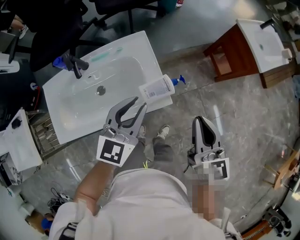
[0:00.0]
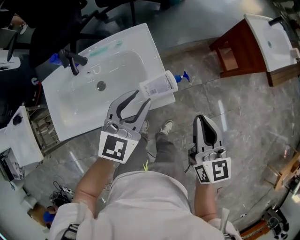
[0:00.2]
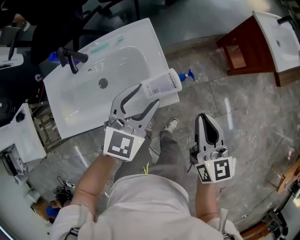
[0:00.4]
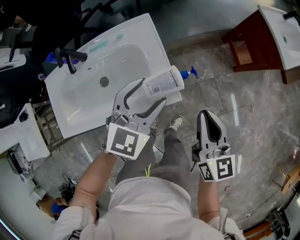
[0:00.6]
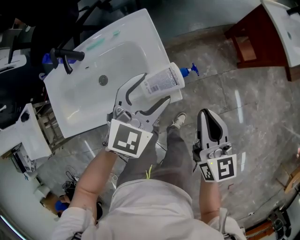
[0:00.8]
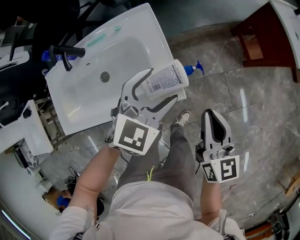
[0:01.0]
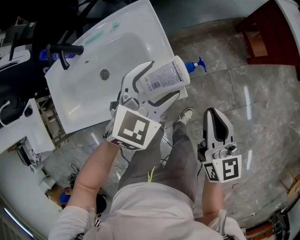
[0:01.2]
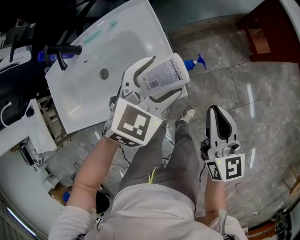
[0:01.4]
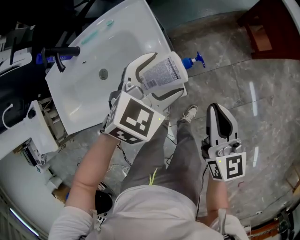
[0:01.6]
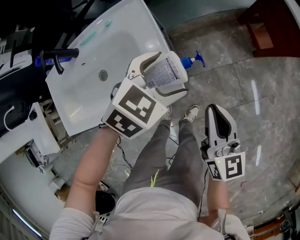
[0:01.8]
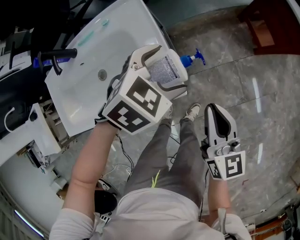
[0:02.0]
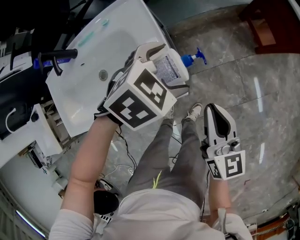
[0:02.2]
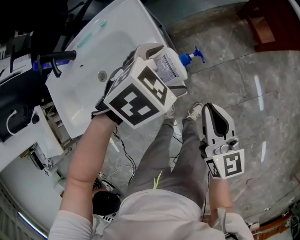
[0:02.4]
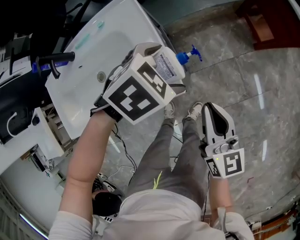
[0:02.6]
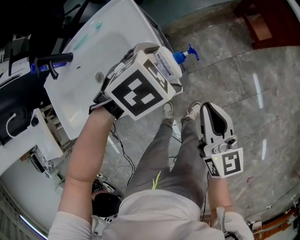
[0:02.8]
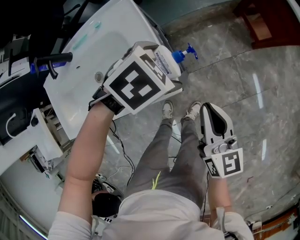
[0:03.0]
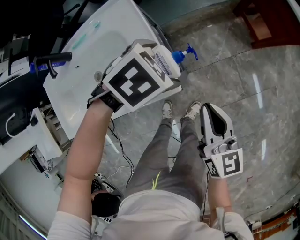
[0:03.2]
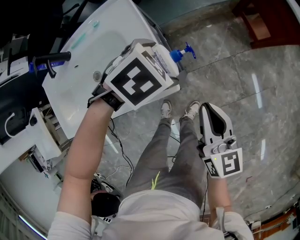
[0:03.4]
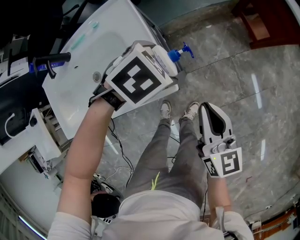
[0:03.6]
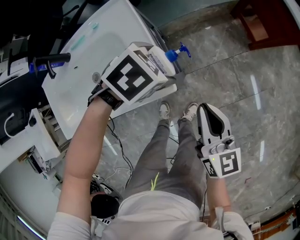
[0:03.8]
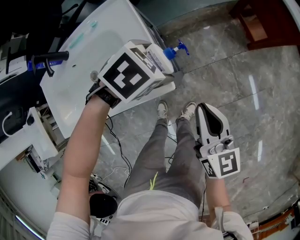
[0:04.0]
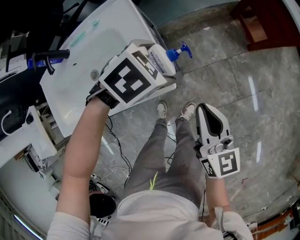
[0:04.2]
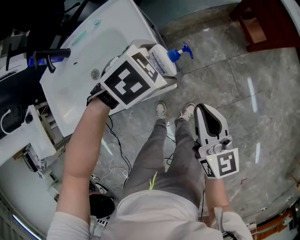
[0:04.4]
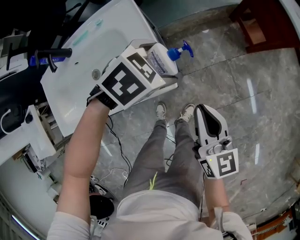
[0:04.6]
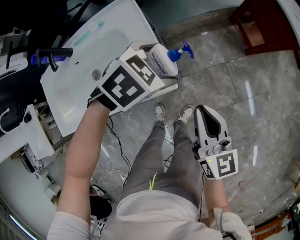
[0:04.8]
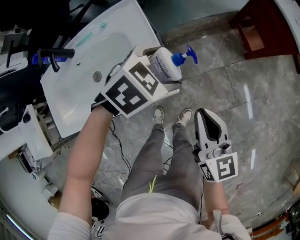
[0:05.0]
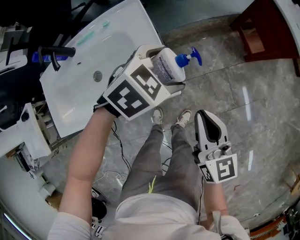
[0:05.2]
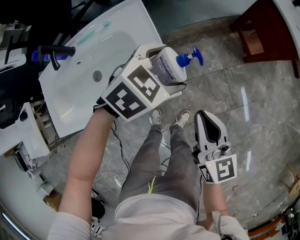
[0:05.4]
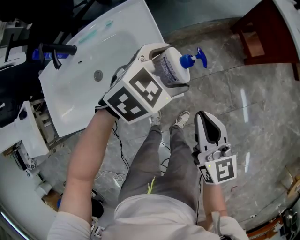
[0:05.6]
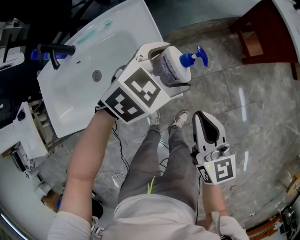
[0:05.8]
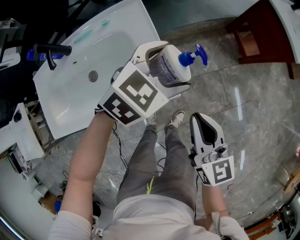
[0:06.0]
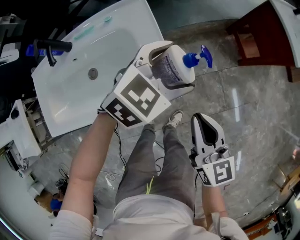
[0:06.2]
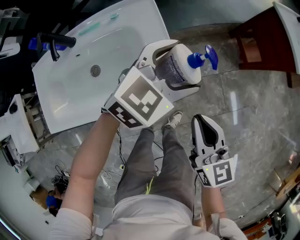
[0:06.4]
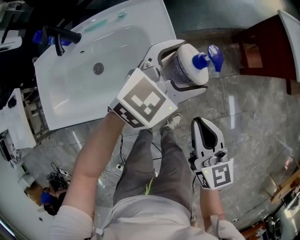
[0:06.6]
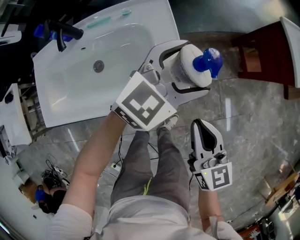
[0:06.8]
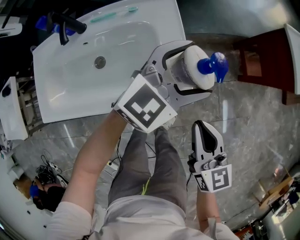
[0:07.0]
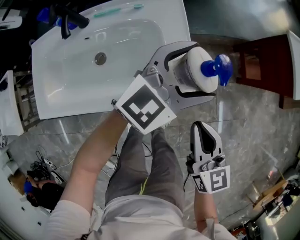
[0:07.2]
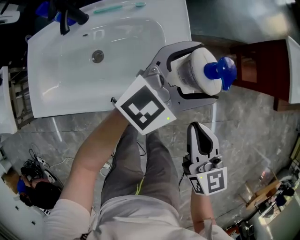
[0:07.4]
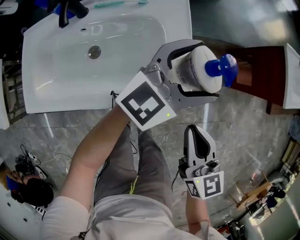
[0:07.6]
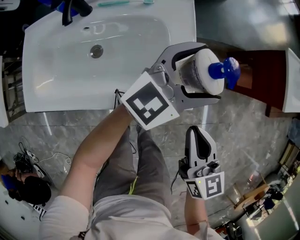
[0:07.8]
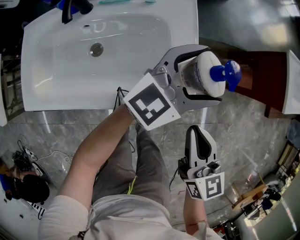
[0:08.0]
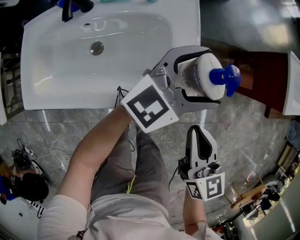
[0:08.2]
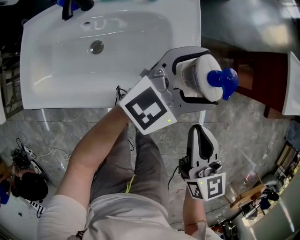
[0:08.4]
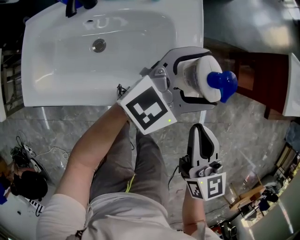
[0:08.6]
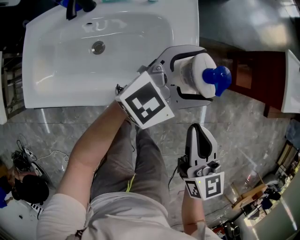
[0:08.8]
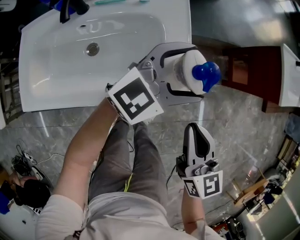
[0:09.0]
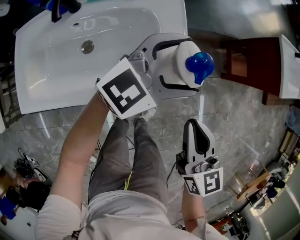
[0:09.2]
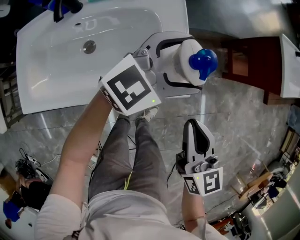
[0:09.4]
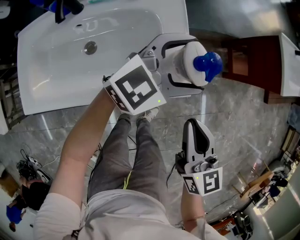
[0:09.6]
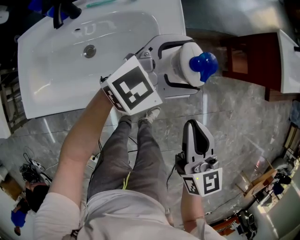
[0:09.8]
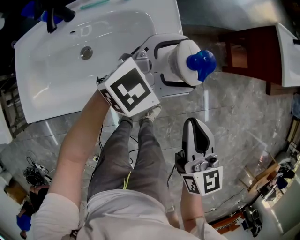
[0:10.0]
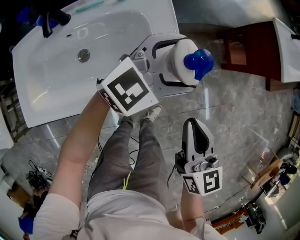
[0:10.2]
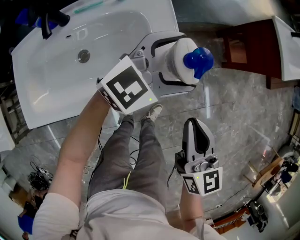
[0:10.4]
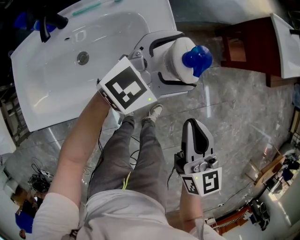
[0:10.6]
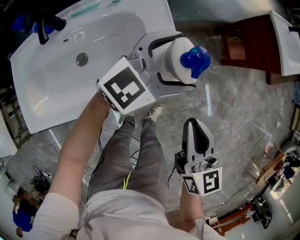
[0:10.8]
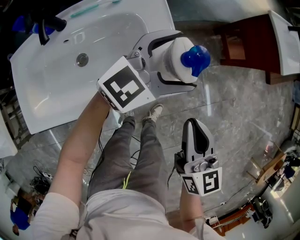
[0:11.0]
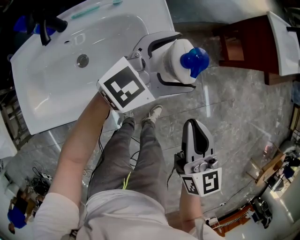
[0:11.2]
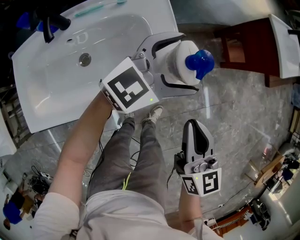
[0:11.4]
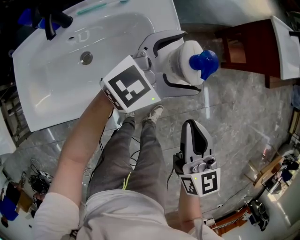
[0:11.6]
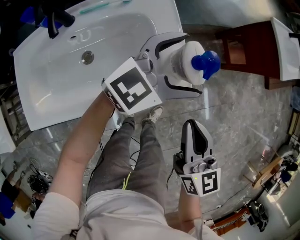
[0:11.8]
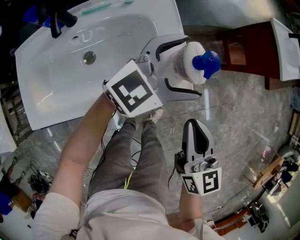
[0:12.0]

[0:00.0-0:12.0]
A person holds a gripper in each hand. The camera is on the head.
0:00.0 to 0:01.6: The left gripper heads downward, to the right and forward, covering some 25 cm, angles its fingers downward, by approximately 30 degrees, and opens, while the right gripper shifts roughly 20 cm downward.
0:01.6 to 0:03.0: The left gripper shifts some 5 cm downward, and swivels some 30 degrees.
0:03.0 to 0:04.4: There are only small adjustments of the grippers.
0:04.4 to 0:06.0: The left gripper is displaced upward by some 5 cm, and rotates some 30 degrees.
0:06.0 to 0:07.6: The left gripper travels to the left and upward by approximately 10 cm, and points its fingers approximately 40 degrees further upward, while the right gripper heads to the left, covering some 5 cm.
0:07.6 to 0:09.0: The grippers move only a little.
0:09.0 to 0:12.0: There are only small adjustments of the grippers.

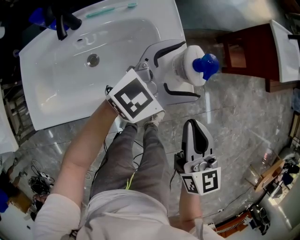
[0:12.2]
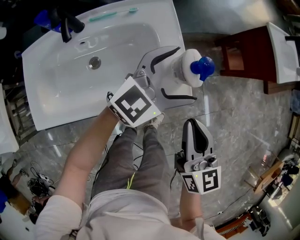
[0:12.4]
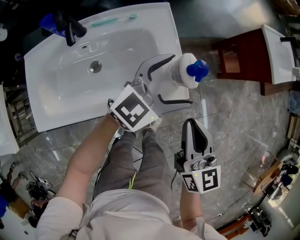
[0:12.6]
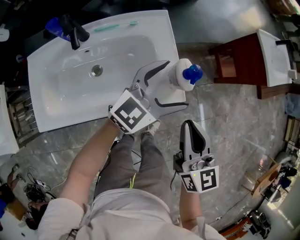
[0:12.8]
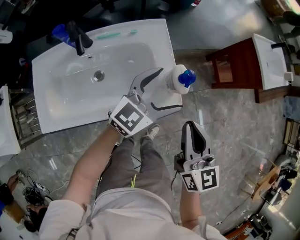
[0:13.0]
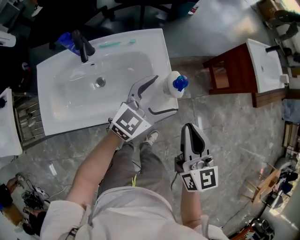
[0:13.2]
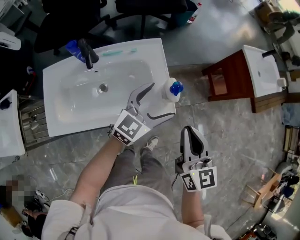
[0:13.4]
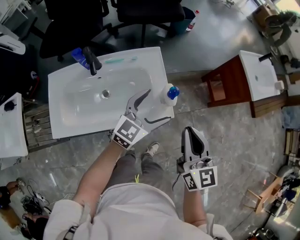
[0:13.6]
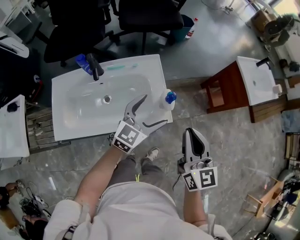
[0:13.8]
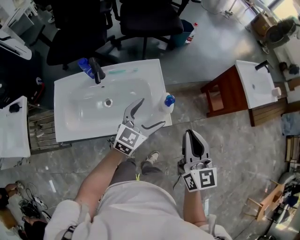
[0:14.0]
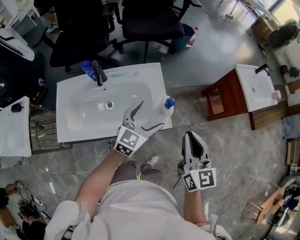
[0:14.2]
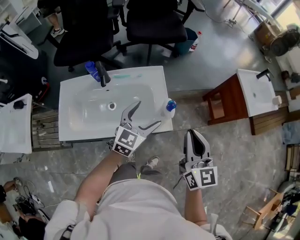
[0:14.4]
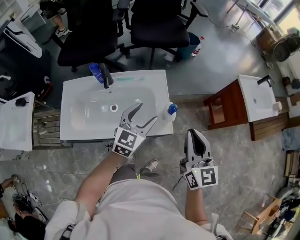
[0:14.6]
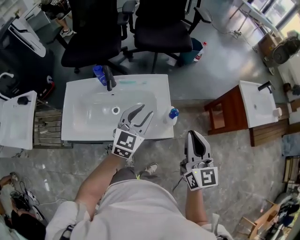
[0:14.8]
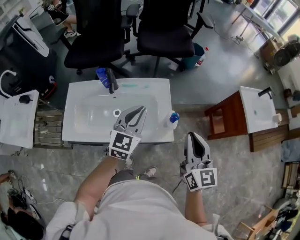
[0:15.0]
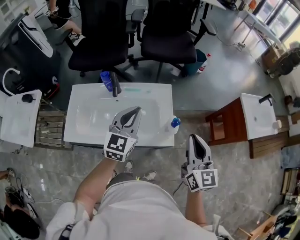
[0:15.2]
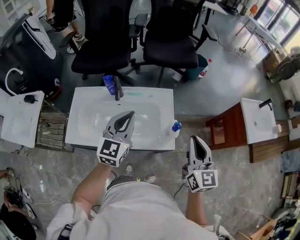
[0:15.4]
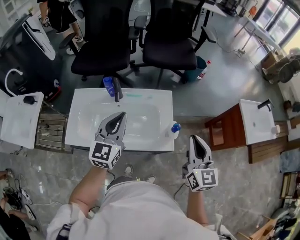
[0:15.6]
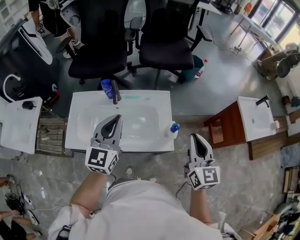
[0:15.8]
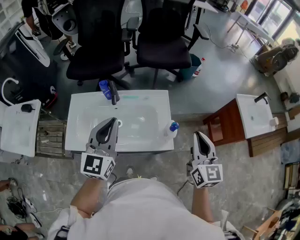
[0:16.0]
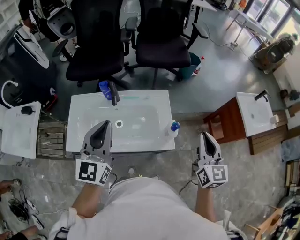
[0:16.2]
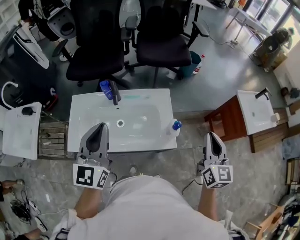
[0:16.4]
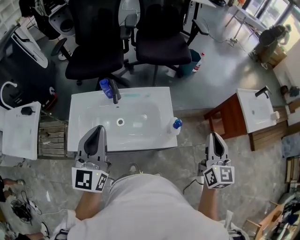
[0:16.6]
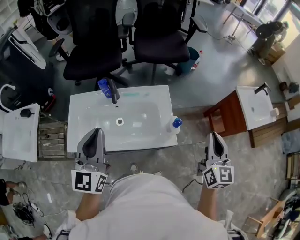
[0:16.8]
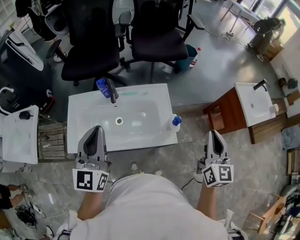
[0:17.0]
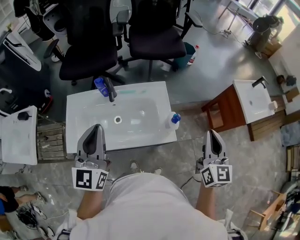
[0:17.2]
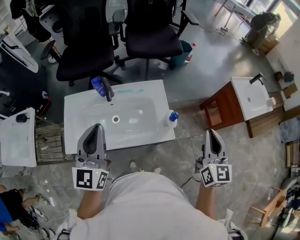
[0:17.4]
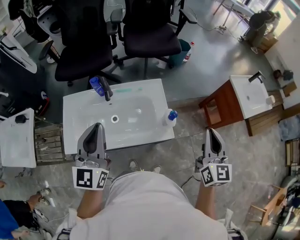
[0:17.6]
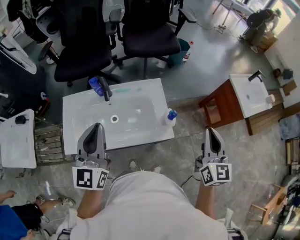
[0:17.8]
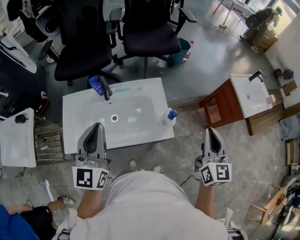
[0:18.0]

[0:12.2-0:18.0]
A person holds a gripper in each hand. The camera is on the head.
0:12.2 to 0:13.6: The right gripper shifts approximately 15 cm upward; the left gripper heads upward and backward, covering some 10 cm, and rotates approximately 20 degrees.
0:13.6 to 0:15.0: The right gripper shifts some 5 cm upward. Meanwhile the left gripper moves upward and to the left, about 15 cm, rotates approximately 30 degrees, and closes.
0:15.0 to 0:16.6: The right gripper goes some 5 cm to the right. Meanwhile the left gripper heads to the left, upward and backward, covering approximately 20 cm, and rotates about 20 degrees.
0:16.6 to 0:18.0: There are only small adjustments of the grippers.

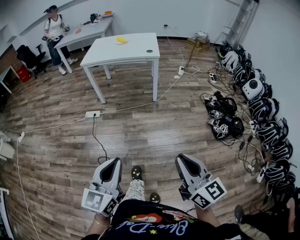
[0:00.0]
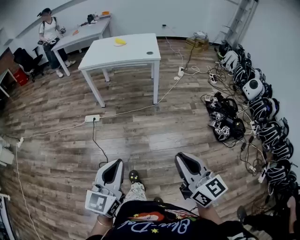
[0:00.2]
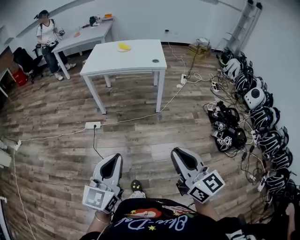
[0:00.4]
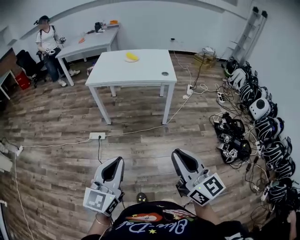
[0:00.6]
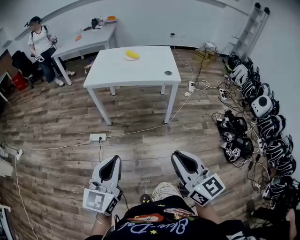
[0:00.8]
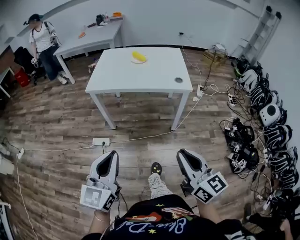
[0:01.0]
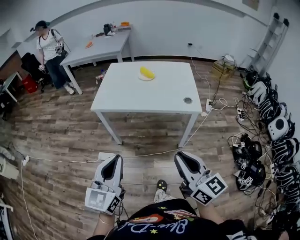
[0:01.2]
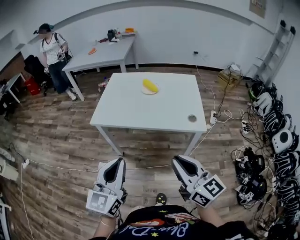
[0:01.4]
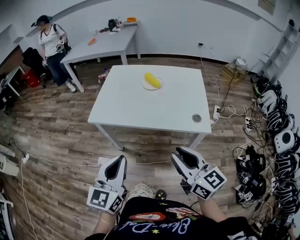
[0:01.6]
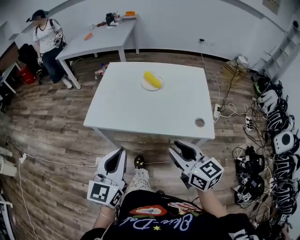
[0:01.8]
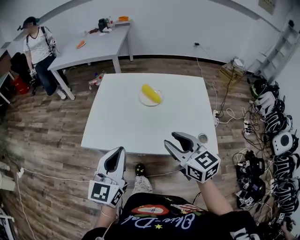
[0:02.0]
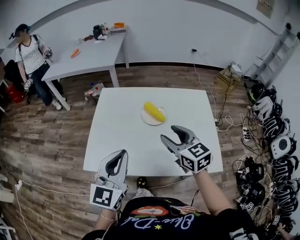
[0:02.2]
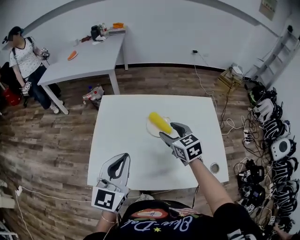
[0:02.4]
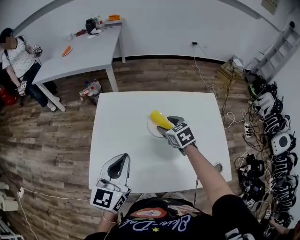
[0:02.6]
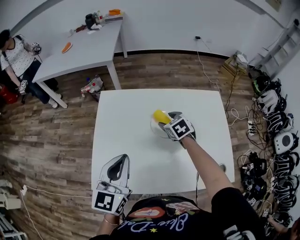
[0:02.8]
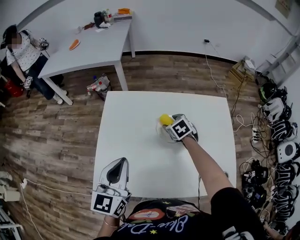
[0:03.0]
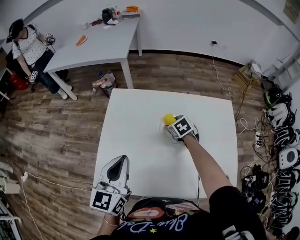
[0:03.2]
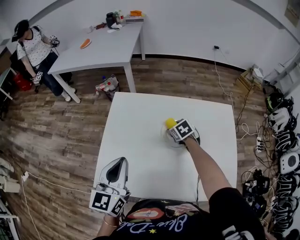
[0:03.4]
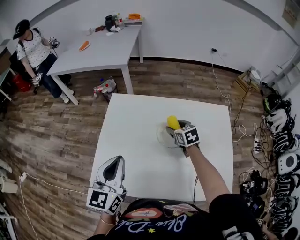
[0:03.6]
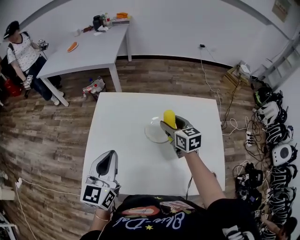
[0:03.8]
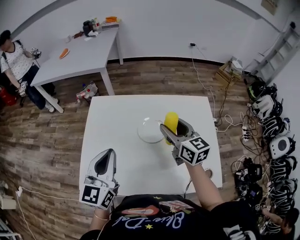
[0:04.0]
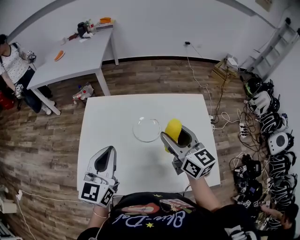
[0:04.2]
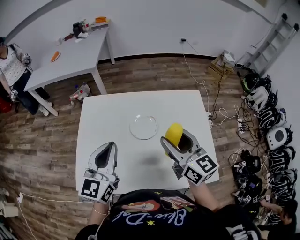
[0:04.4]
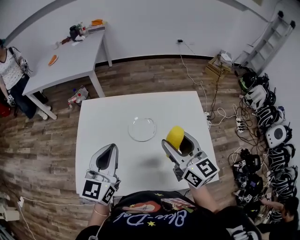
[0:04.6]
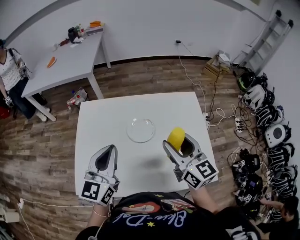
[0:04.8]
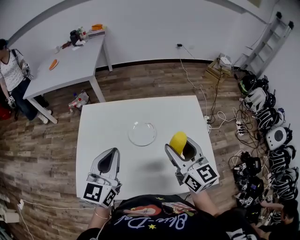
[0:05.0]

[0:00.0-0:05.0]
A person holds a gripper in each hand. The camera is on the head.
0:00.0 to 0:01.6: The two grippers travel together, forward, about 80 cm.
0:01.6 to 0:03.4: Both grippers are carried forward, about 60 cm. The right gripper tips its fingers downward by roughly 60 degrees, and opens its fingers.
0:03.4 to 0:05.0: The left gripper travels to the right by roughly 10 cm, while the right gripper goes some 35 cm upward, backward and to the right, and tips its fingers upward by approximately 60 degrees.

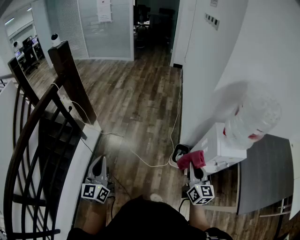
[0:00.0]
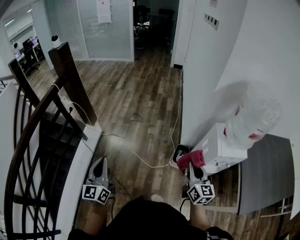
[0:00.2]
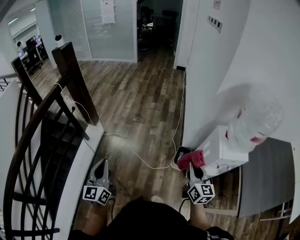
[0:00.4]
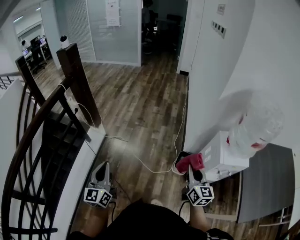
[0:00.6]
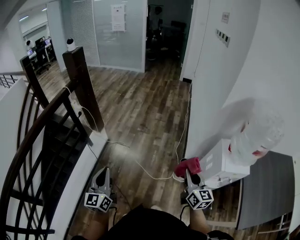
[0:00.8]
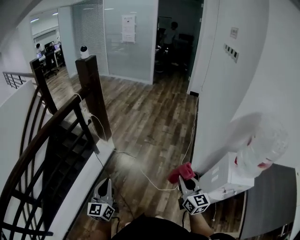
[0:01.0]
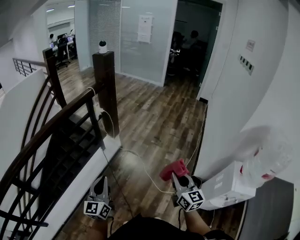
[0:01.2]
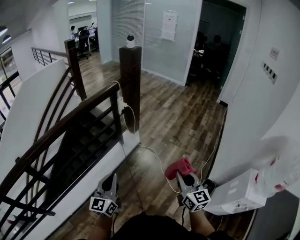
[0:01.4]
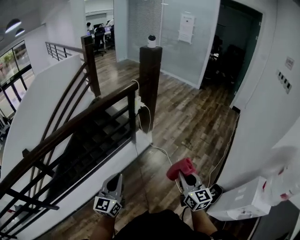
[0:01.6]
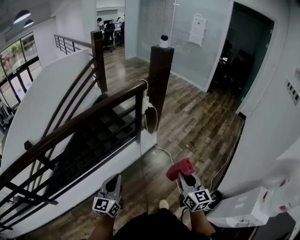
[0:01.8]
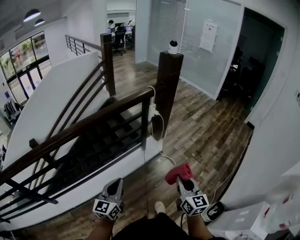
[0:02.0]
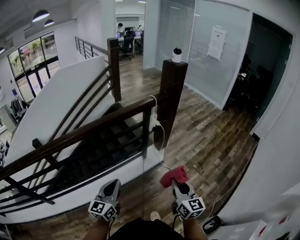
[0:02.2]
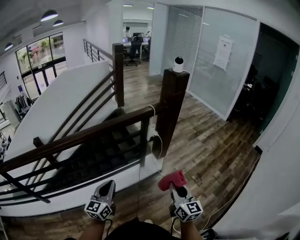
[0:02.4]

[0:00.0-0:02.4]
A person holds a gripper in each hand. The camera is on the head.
0:00.0 to 0:01.2: The right gripper travels to the left by about 20 cm, and turns by some 30 degrees; the left gripper is displaced to the left and backward by approximately 15 cm.
0:01.2 to 0:02.4: The right gripper shifts by roughly 30 cm, and rotates about 30 degrees. The left gripper changes place by roughly 15 cm, and rotates approximately 20 degrees.
